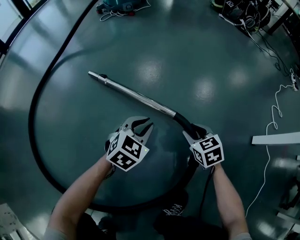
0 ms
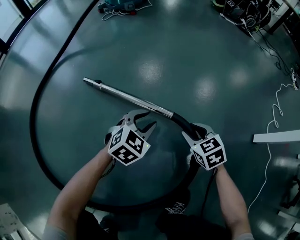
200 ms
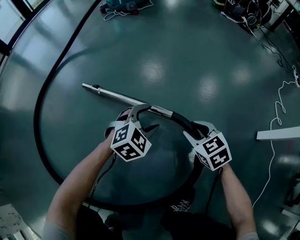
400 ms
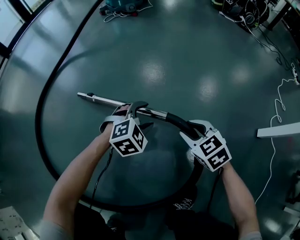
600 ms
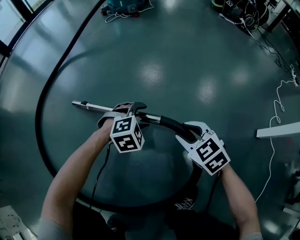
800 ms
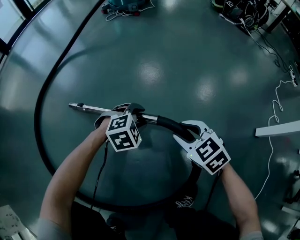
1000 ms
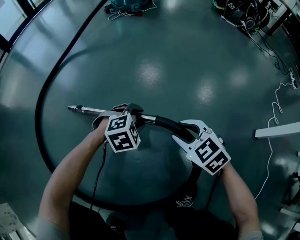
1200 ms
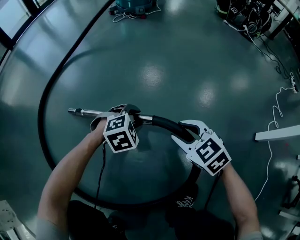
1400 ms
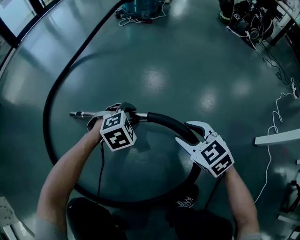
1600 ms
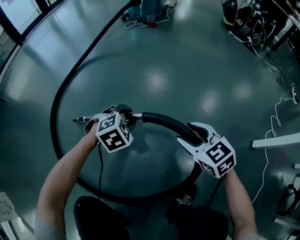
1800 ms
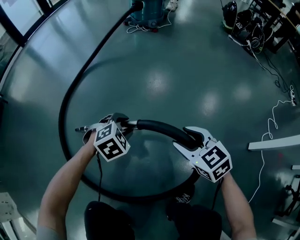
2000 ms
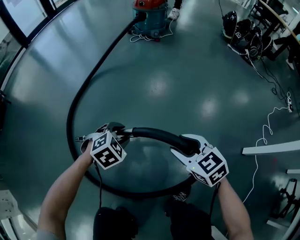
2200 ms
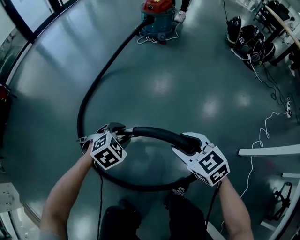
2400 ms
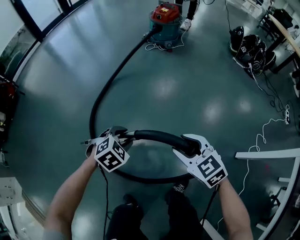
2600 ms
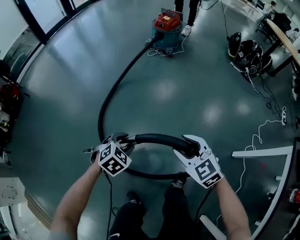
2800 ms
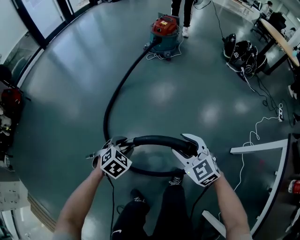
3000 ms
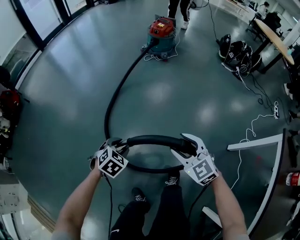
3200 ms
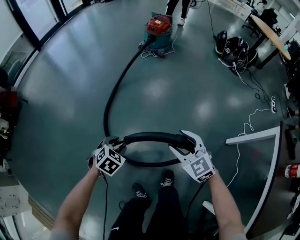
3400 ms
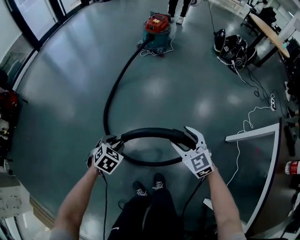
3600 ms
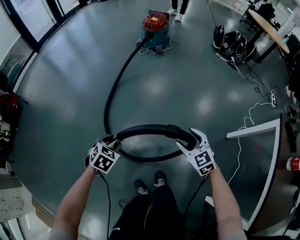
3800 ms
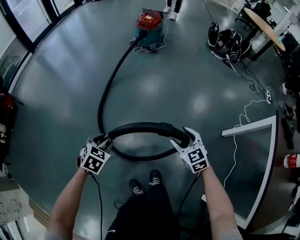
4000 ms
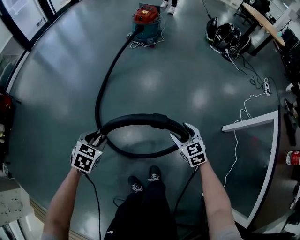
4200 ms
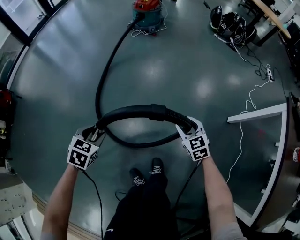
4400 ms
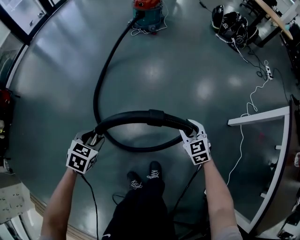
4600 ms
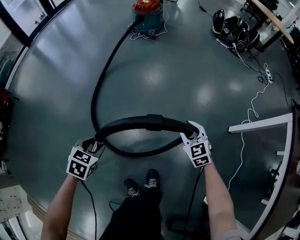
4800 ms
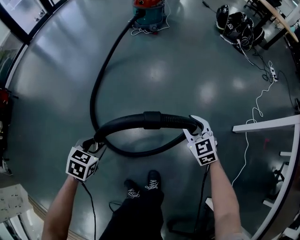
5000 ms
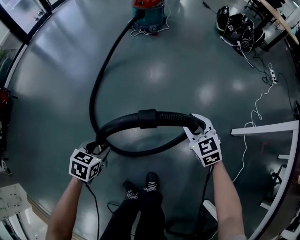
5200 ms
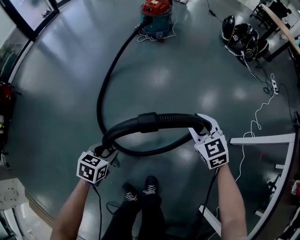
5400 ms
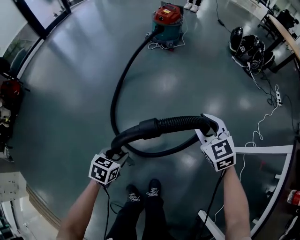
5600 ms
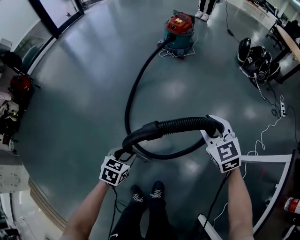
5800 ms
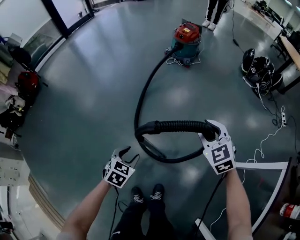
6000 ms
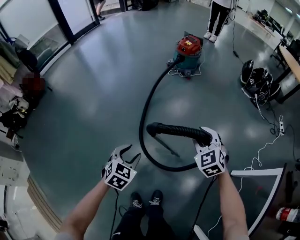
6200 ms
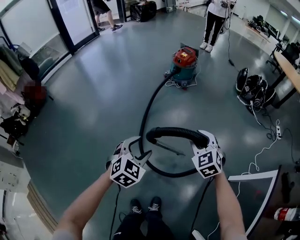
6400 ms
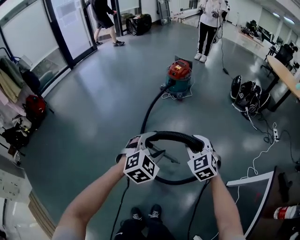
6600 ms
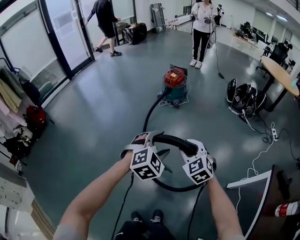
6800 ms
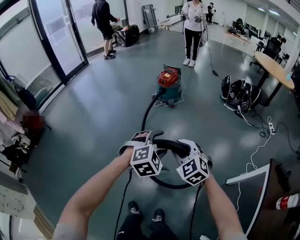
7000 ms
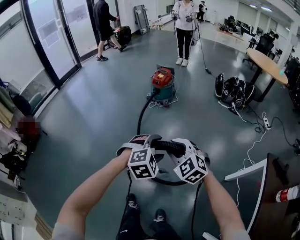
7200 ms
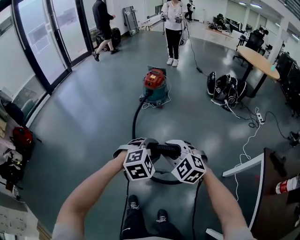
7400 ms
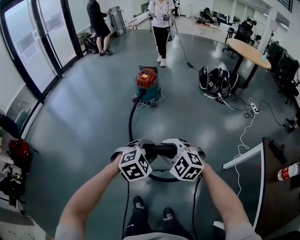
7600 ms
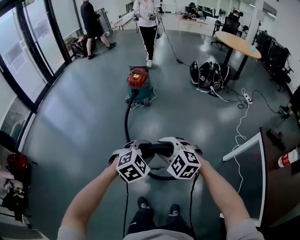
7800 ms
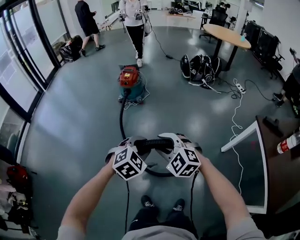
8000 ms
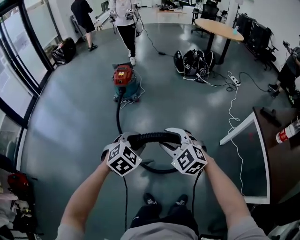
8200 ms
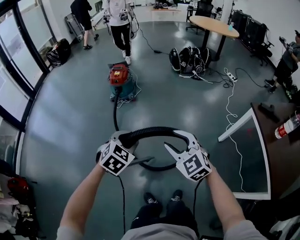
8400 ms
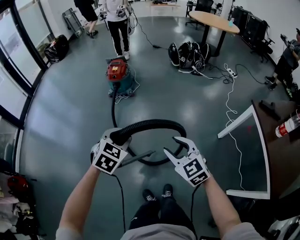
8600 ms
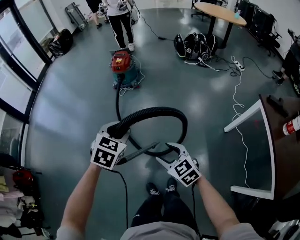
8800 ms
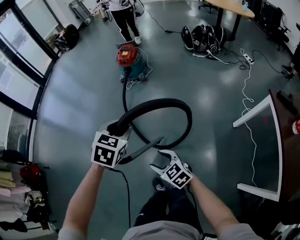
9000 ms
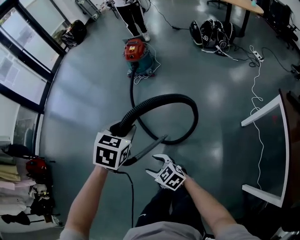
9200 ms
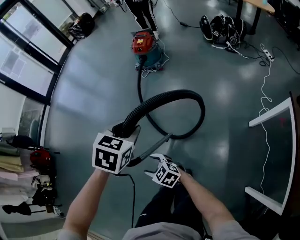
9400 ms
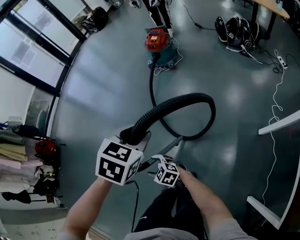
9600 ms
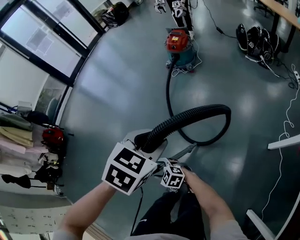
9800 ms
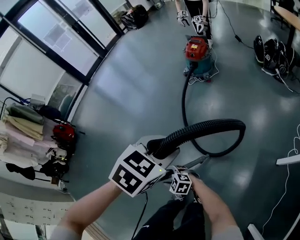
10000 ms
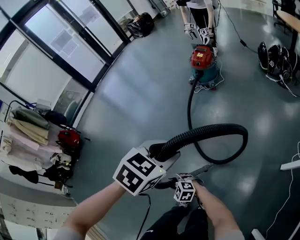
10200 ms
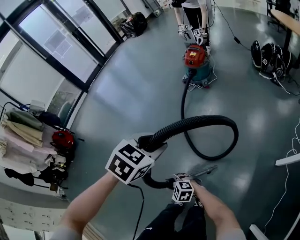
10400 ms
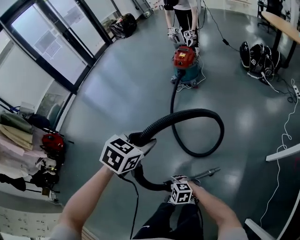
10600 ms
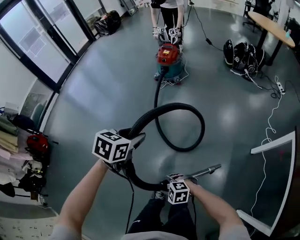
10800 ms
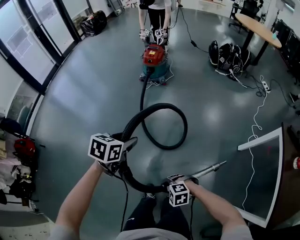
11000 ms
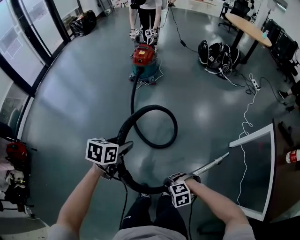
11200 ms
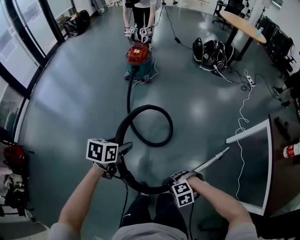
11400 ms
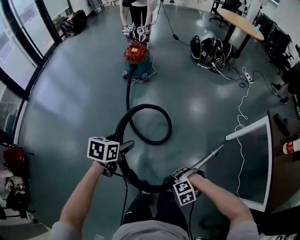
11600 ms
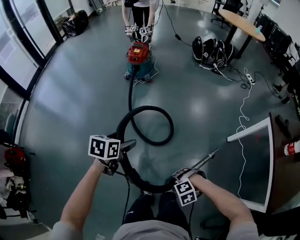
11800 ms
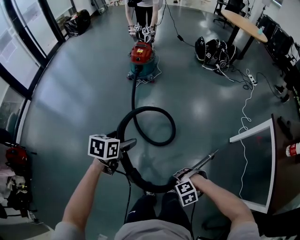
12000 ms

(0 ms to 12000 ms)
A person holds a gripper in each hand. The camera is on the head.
0 ms - 1600 ms: The left gripper shifts some 15 cm to the left, and turns by roughly 30 degrees. Meanwhile the right gripper is displaced to the left, upward and backward by approximately 20 cm, and rotates about 30 degrees.
1600 ms - 3000 ms: The left gripper shifts some 50 cm upward and to the left, and turns by approximately 30 degrees, while the right gripper moves upward, about 50 cm.
3000 ms - 4400 ms: The left gripper shifts approximately 10 cm to the left and backward; the right gripper travels downward, to the right and backward by approximately 20 cm, and changes its angle by approximately 30 degrees.
4400 ms - 6000 ms: The left gripper moves to the right, roughly 5 cm, and moves approximately 10 cm downward and comes back, while the right gripper heads upward and forward, covering some 25 cm, and changes its angle by approximately 20 degrees.
6000 ms - 7600 ms: The right gripper is displaced upward and to the left by about 20 cm, while the left gripper moves upward and forward, about 30 cm, and twists some 50 degrees clockwise, seen from behind.
7600 ms - 9000 ms: The left gripper goes roughly 15 cm to the left and forward, and rotates approximately 30 degrees. The right gripper shifts about 15 cm downward and backward, rotates around the line of its fingers by approximately 40 degrees, clockwise from behind, and opens its fingers.
9000 ms - 10400 ms: The left gripper heads to the left, covering roughly 5 cm, while the right gripper travels to the left and downward by approximately 20 cm, and changes its angle by approximately 50 degrees.
10400 ms - 12000 ms: The right gripper ends up some 15 cm from where it was, and points its fingers some 30 degrees further downward. The left gripper travels downward by roughly 10 cm, turns by roughly 30 degrees, and opens its fingers.

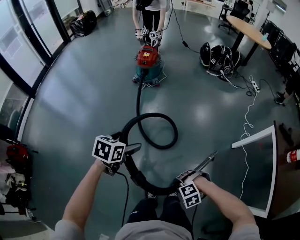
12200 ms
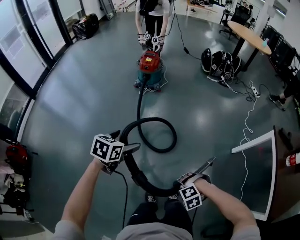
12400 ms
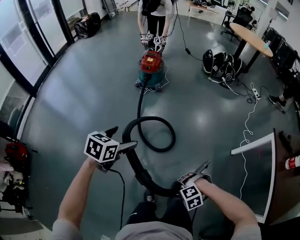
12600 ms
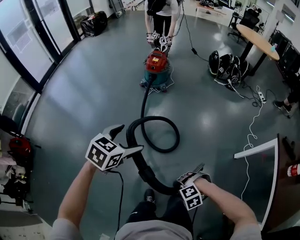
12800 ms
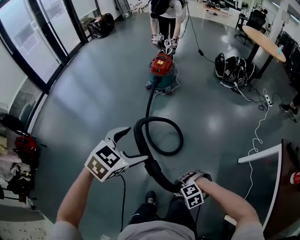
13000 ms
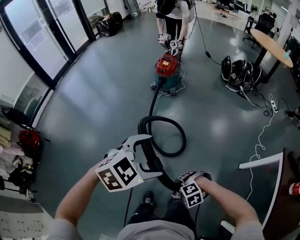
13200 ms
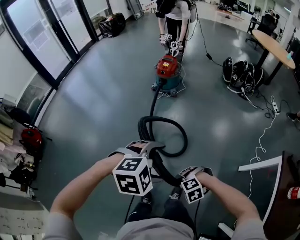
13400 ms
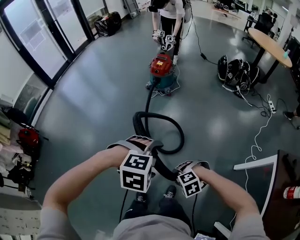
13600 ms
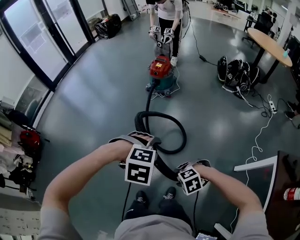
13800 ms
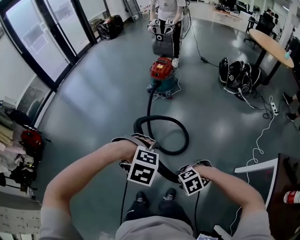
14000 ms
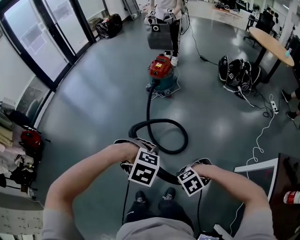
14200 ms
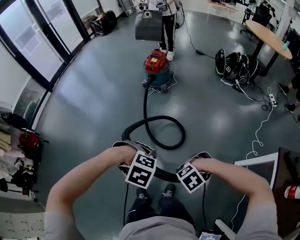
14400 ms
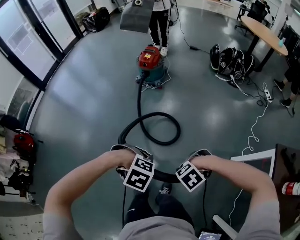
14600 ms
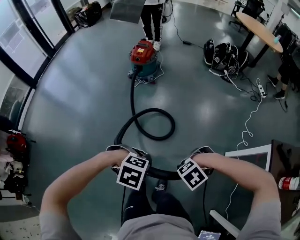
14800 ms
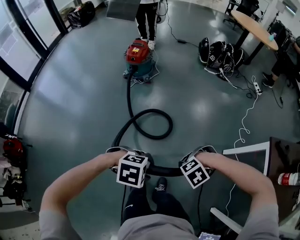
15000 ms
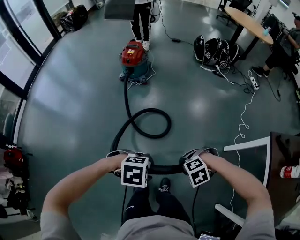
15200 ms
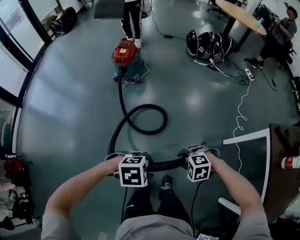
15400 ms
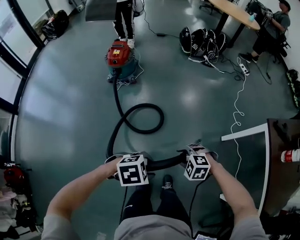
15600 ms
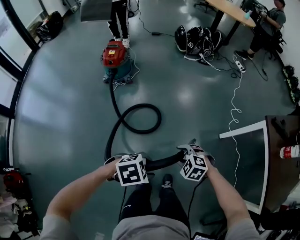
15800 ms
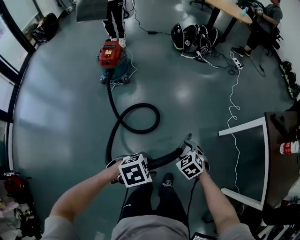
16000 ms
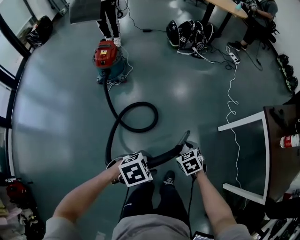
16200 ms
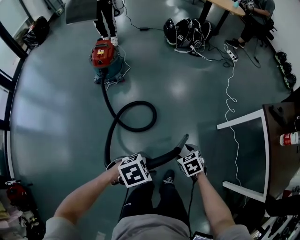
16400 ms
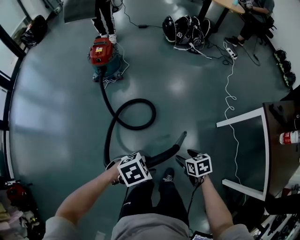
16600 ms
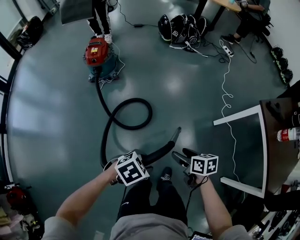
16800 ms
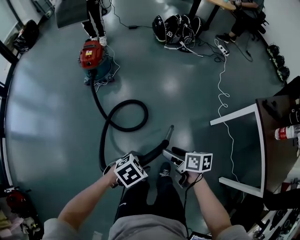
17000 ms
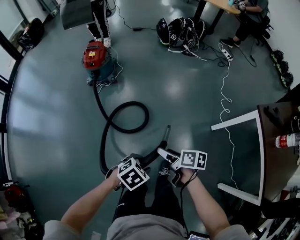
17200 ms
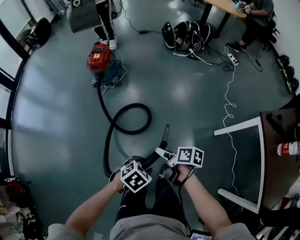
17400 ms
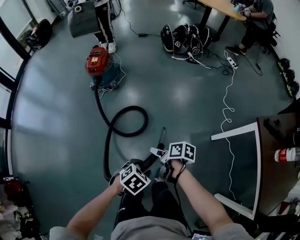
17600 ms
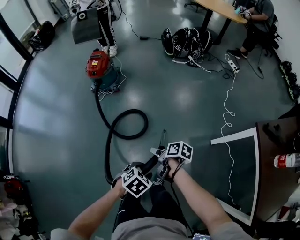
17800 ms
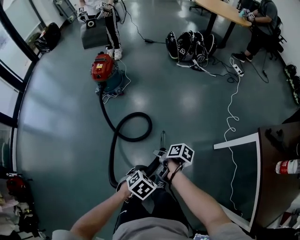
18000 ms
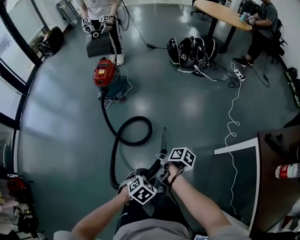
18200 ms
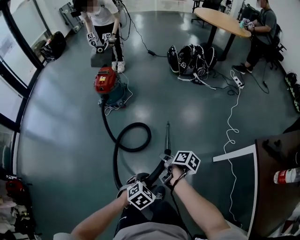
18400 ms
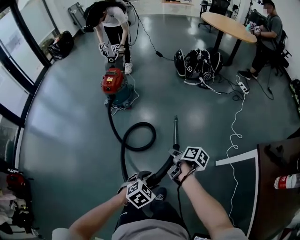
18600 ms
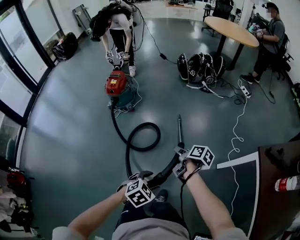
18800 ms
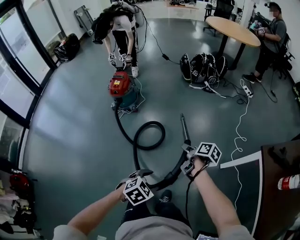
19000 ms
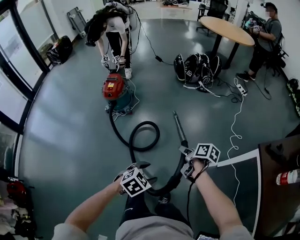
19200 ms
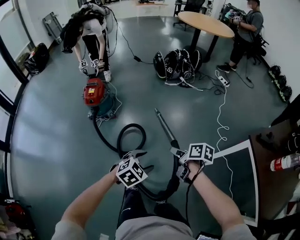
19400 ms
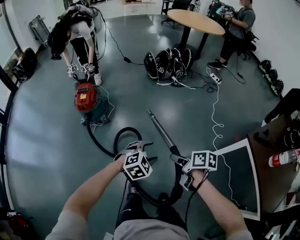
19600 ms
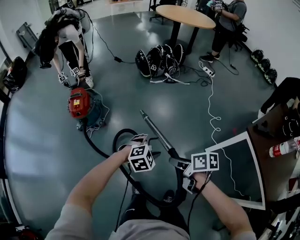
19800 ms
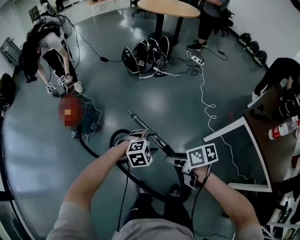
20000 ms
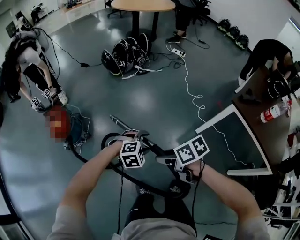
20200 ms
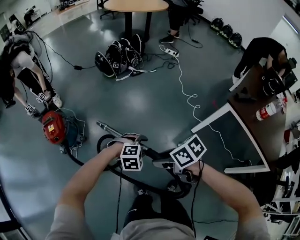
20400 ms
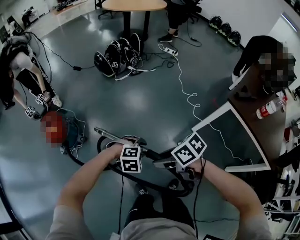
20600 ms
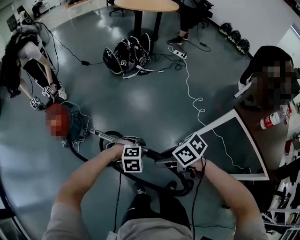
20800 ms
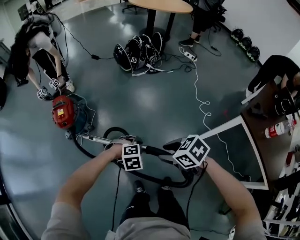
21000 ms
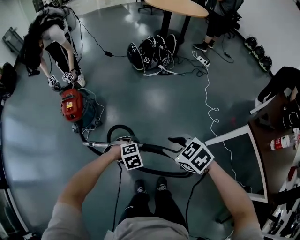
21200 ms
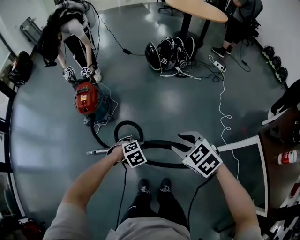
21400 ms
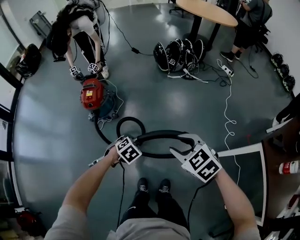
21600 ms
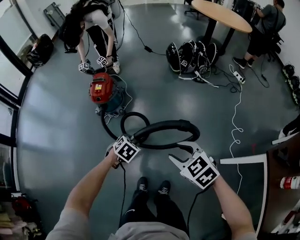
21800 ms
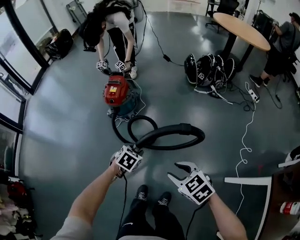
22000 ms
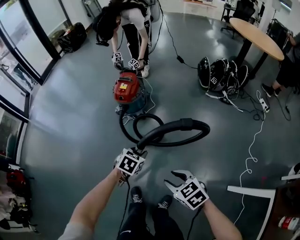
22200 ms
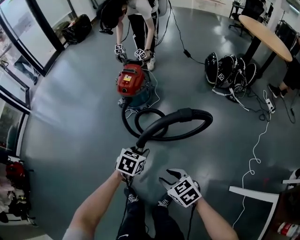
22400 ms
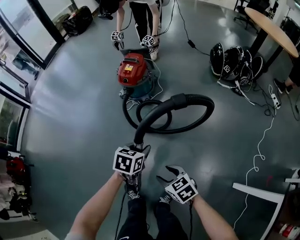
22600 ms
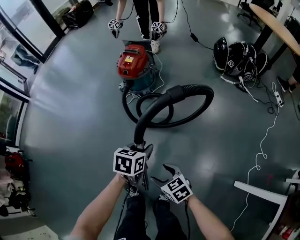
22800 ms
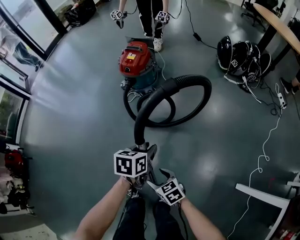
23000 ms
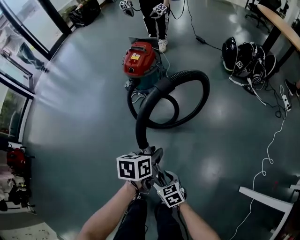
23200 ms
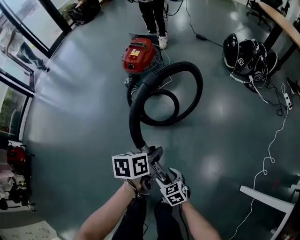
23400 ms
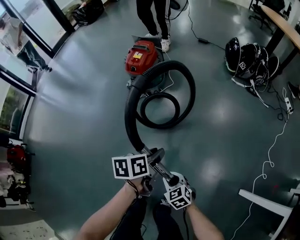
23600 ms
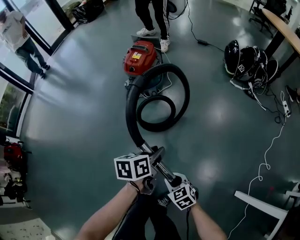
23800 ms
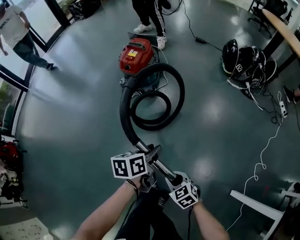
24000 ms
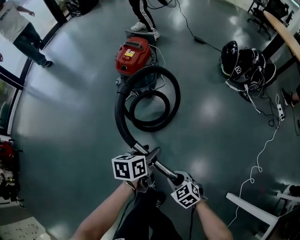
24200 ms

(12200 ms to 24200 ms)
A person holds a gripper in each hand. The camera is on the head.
12200 ms - 13800 ms: The right gripper ends up some 20 cm from where it was; the left gripper shifts by about 25 cm, and rolls clockwise, seen from behind, by about 70 degrees.
13800 ms - 15200 ms: The right gripper ends up some 10 cm from where it was; the left gripper moves downward, approximately 10 cm, changes its angle by about 30 degrees, and closes its fingers.
15200 ms - 16600 ms: The right gripper is displaced downward by about 5 cm, twists roughly 110 degrees clockwise, seen from behind, and opens up; the left gripper ends up approximately 5 cm from where it was.
16600 ms - 18200 ms: The right gripper shifts by approximately 15 cm, and rolls clockwise, seen from behind, by about 50 degrees, while the left gripper changes place by about 20 cm, and changes its angle by roughly 30 degrees.
18200 ms - 19800 ms: The right gripper travels upward and forward by some 15 cm, and rotates about 20 degrees; the left gripper shifts about 25 cm forward, and rotates around the line of its fingers by roughly 50 degrees, clockwise from behind.
19800 ms - 21200 ms: The left gripper shifts by approximately 15 cm, and rotates about 20 degrees. The right gripper shifts by approximately 10 cm, and rolls counterclockwise, seen from behind, by about 60 degrees.
21200 ms - 22600 ms: The right gripper travels downward by roughly 25 cm, and changes its angle by approximately 30 degrees, while the left gripper ends up about 15 cm from where it was, and twists about 90 degrees counterclockwise, seen from behind.
22600 ms - 24200 ms: The right gripper shifts some 15 cm downward and to the right, and closes. The left gripper moves downward, approximately 10 cm, and rotates some 30 degrees.
